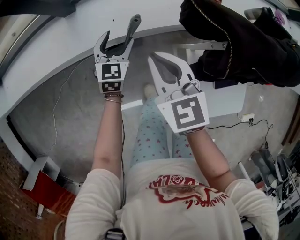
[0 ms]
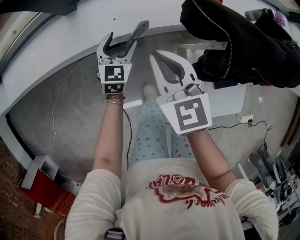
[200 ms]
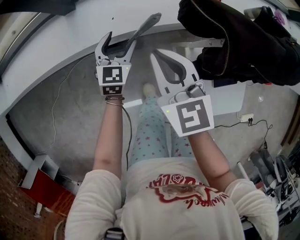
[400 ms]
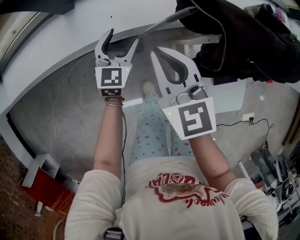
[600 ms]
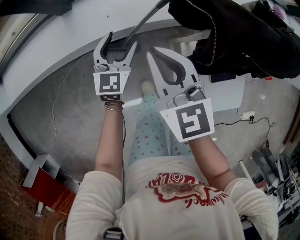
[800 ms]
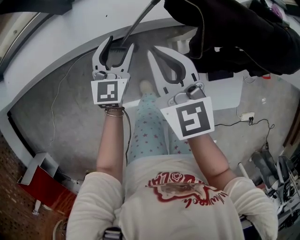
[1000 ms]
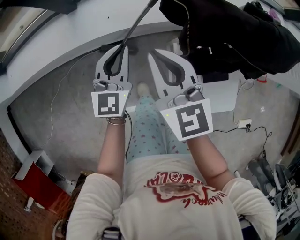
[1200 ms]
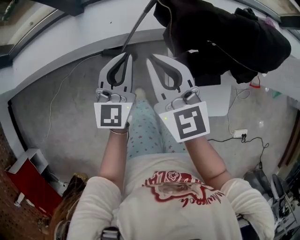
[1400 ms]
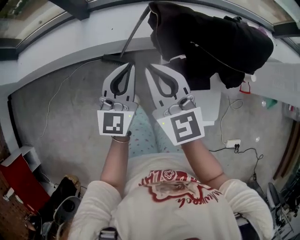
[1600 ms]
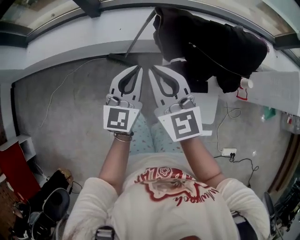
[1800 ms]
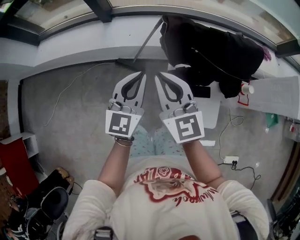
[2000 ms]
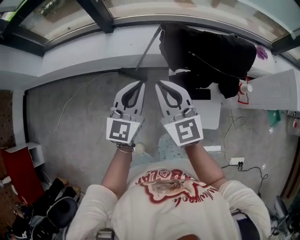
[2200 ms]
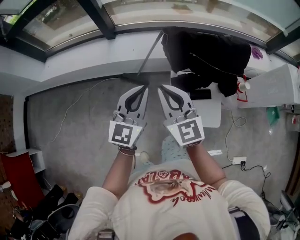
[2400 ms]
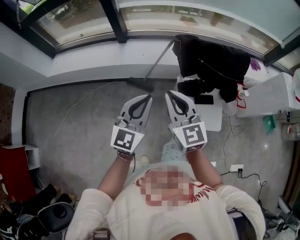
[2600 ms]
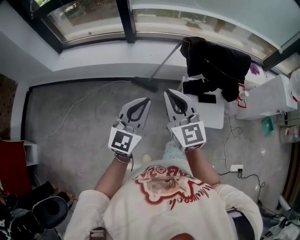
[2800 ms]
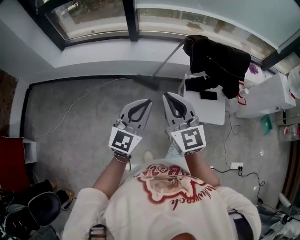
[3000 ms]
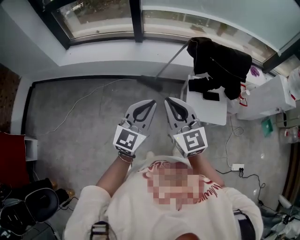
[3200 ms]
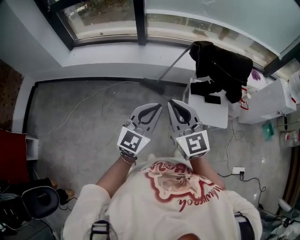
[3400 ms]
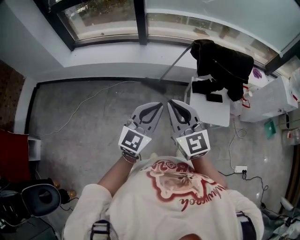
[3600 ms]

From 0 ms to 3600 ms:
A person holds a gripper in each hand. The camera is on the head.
From 0 ms to 1800 ms: The grippers both shift upward, backward and to the right by some 35 cm. The left gripper changes its angle by roughly 30 degrees, and closes its fingers; the right gripper changes its angle by approximately 30 degrees.
From 1800 ms to 3600 ms: The right gripper goes roughly 40 cm backward and to the left. Meanwhile the left gripper heads backward, to the left and upward, covering approximately 40 cm.

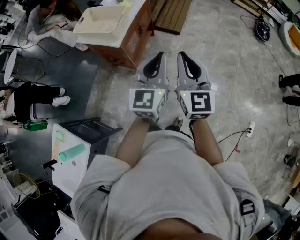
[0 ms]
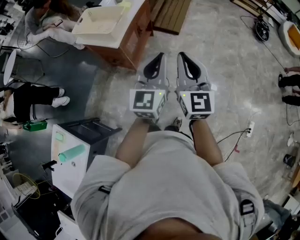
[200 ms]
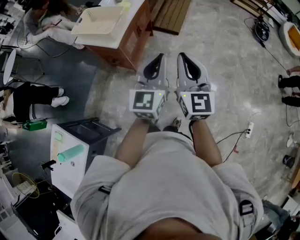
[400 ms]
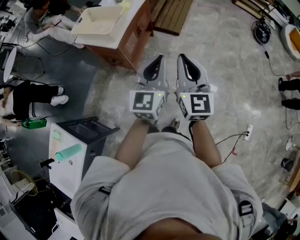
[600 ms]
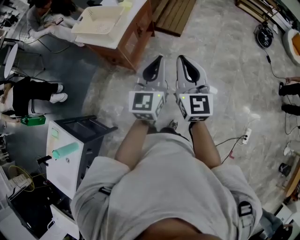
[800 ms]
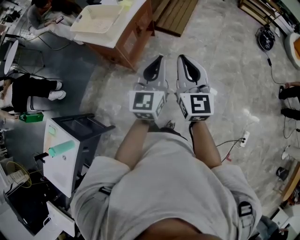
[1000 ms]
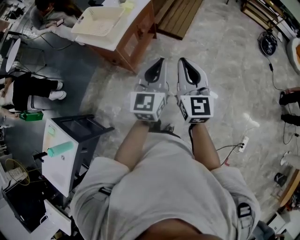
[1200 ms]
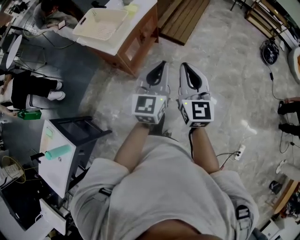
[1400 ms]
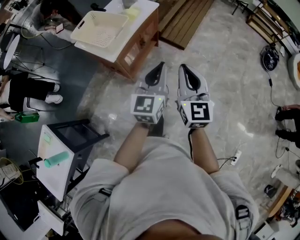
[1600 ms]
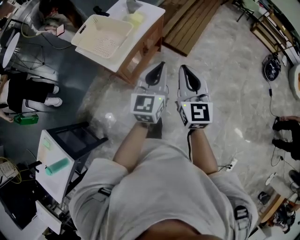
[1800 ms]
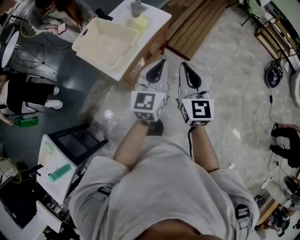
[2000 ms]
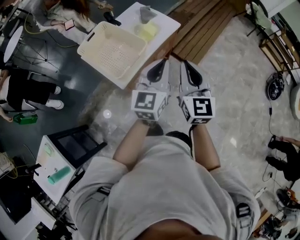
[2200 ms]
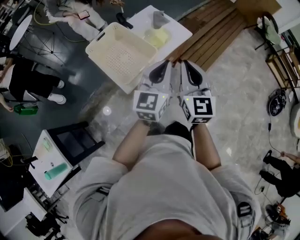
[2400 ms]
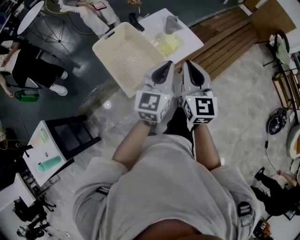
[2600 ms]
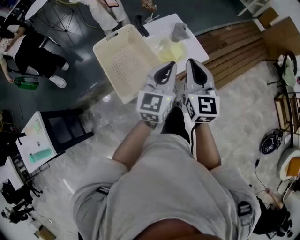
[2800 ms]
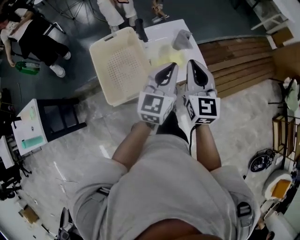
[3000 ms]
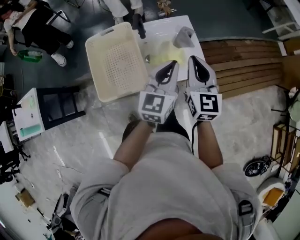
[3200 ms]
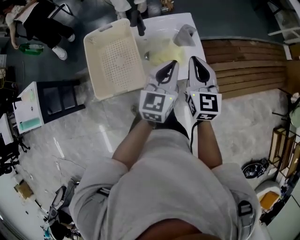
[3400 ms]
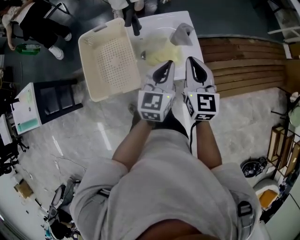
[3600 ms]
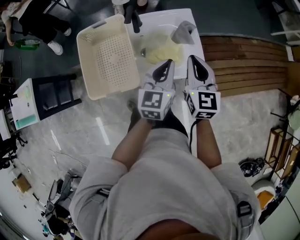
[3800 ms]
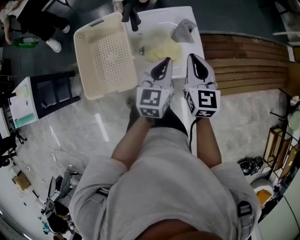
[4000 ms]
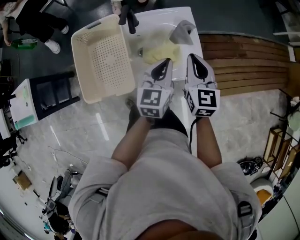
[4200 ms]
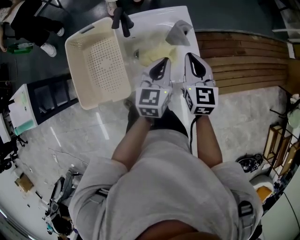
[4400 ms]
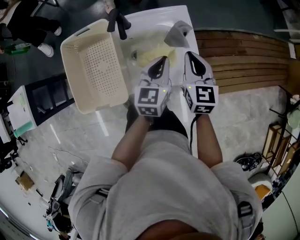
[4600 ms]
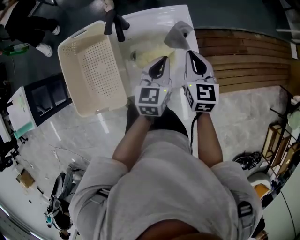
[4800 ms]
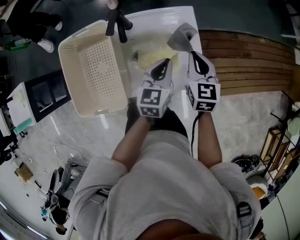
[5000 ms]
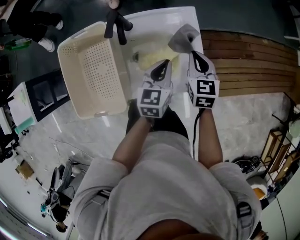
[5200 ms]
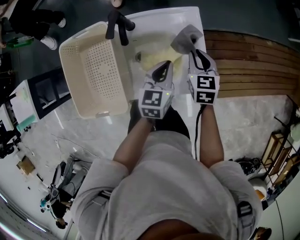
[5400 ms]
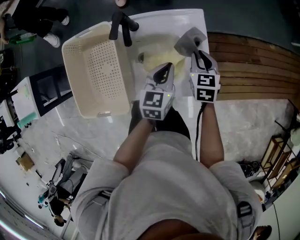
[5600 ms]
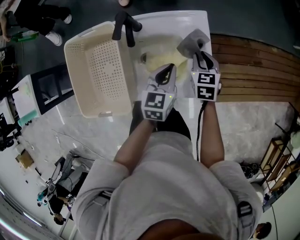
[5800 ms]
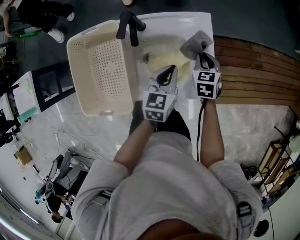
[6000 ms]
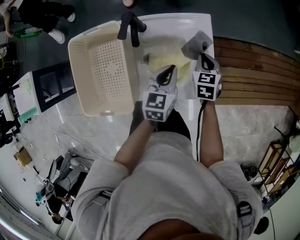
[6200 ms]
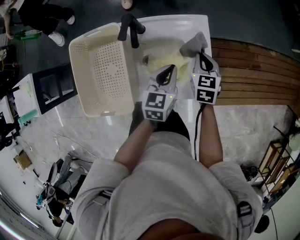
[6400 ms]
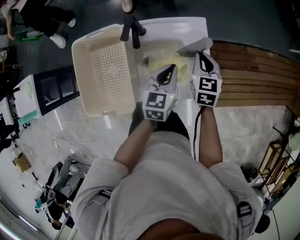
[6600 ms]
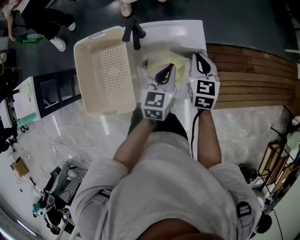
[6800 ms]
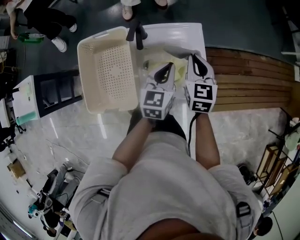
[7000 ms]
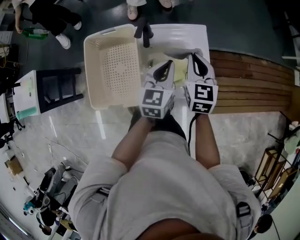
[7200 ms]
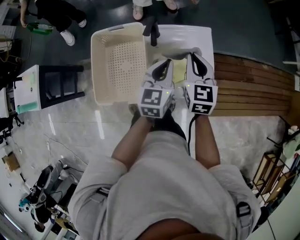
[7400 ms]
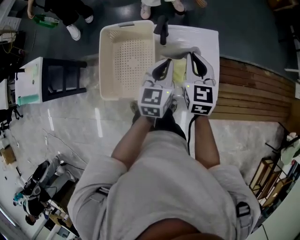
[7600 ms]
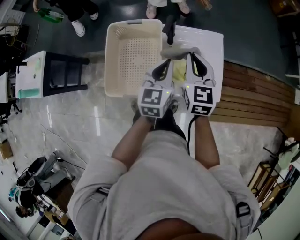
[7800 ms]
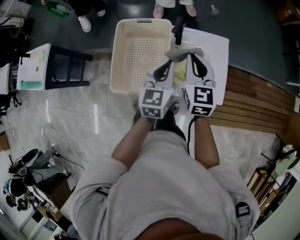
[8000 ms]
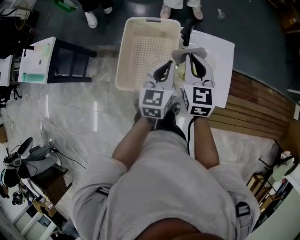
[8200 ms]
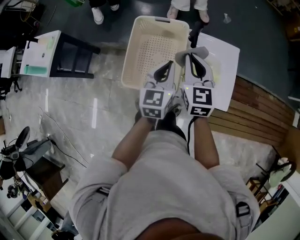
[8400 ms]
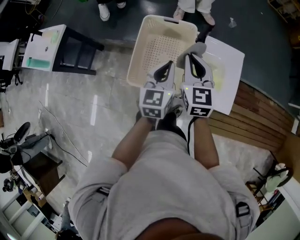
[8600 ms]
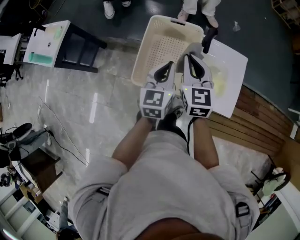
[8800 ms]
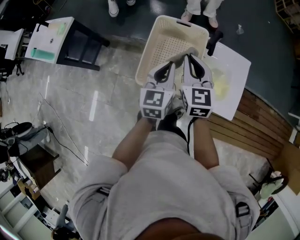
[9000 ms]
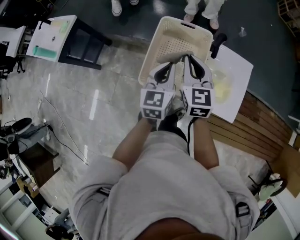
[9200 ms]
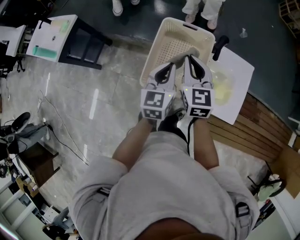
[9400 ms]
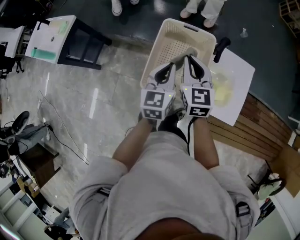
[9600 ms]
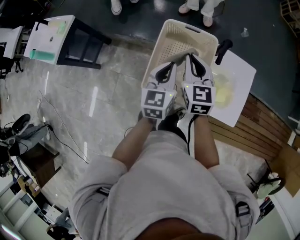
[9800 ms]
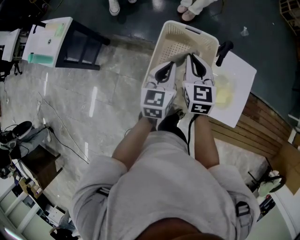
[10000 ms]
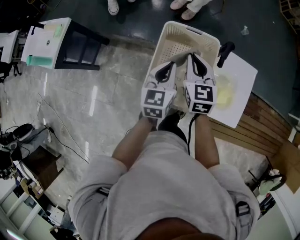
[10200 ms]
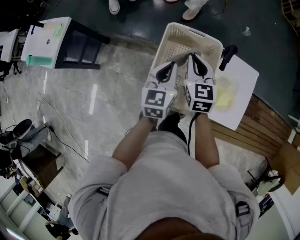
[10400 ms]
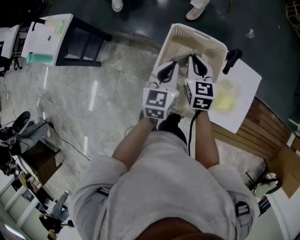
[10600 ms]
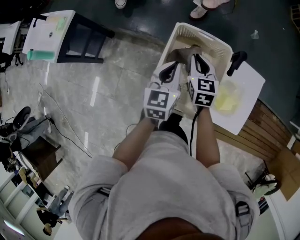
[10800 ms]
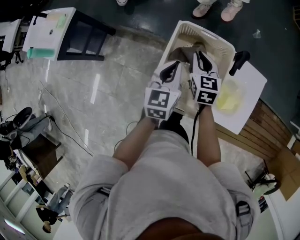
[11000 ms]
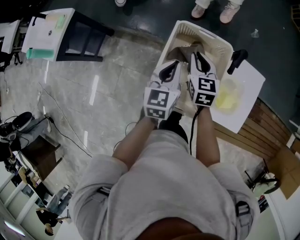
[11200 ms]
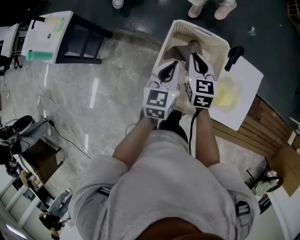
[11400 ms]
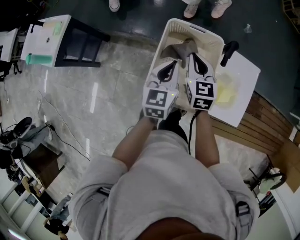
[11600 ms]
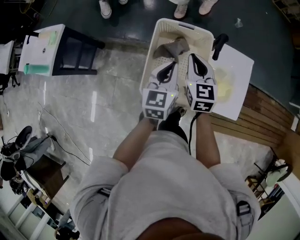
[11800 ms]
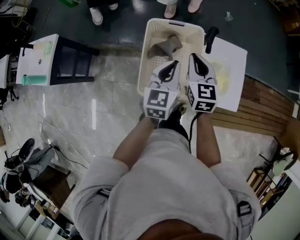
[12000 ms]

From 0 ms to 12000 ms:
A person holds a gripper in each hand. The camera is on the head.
From 0 ms to 1600 ms: The two grippers go approximately 15 cm forward.
From 1600 ms to 3000 ms: The pair of grippers is taken about 50 cm. The left gripper rotates some 30 degrees, while the right gripper changes its angle by some 40 degrees.
From 3000 ms to 4400 ms: Both grippers travel together downward, forward and to the right, roughly 20 cm. The left gripper swivels roughly 20 degrees.
From 4400 ms to 6000 ms: The right gripper heads downward and forward, covering some 20 cm, and changes its angle by about 30 degrees; the left gripper heads downward, covering approximately 10 cm.
From 6000 ms to 7600 ms: The left gripper moves upward and to the left, approximately 15 cm. Meanwhile the right gripper shifts roughly 25 cm upward and to the left, and swivels about 30 degrees.
From 7600 ms to 9000 ms: The grippers both shift to the left by roughly 20 cm. The right gripper swivels approximately 20 degrees.
From 9000 ms to 10400 ms: The left gripper is displaced forward by roughly 5 cm. The right gripper moves forward and downward, some 10 cm.
From 10400 ms to 12000 ms: The right gripper heads to the right and backward, covering roughly 10 cm, and moves approximately 5 cm downward and comes back. The left gripper is displaced to the right by approximately 5 cm.

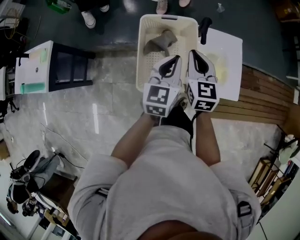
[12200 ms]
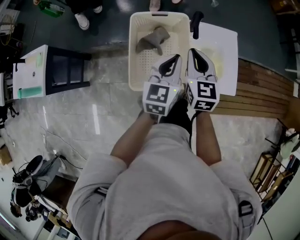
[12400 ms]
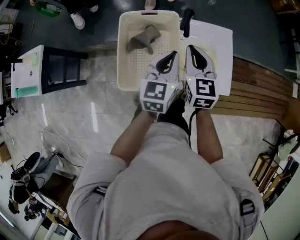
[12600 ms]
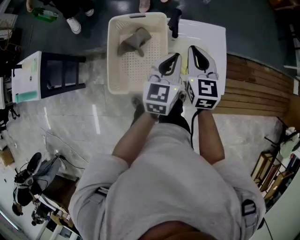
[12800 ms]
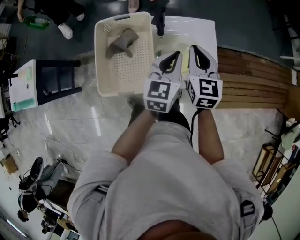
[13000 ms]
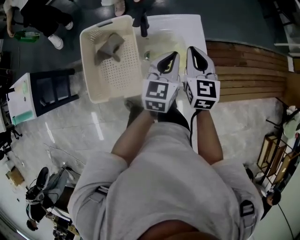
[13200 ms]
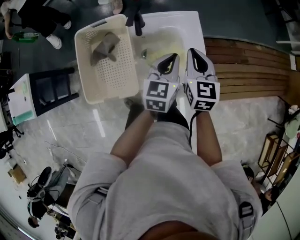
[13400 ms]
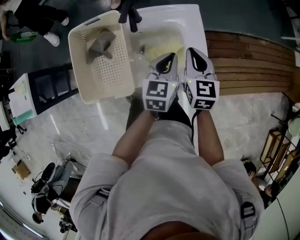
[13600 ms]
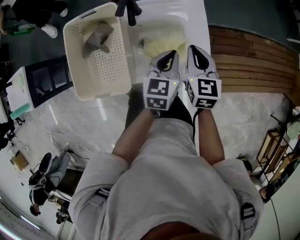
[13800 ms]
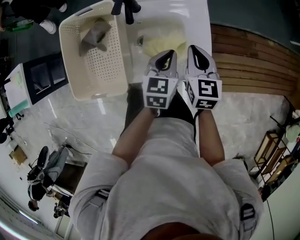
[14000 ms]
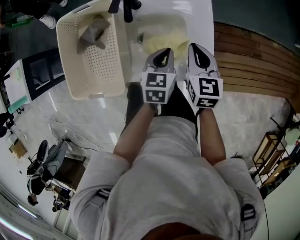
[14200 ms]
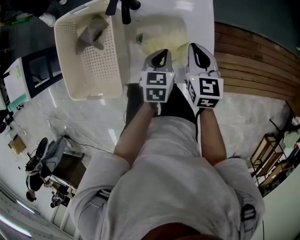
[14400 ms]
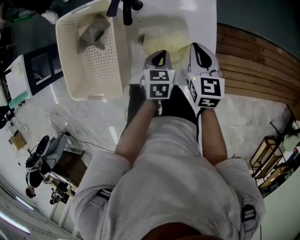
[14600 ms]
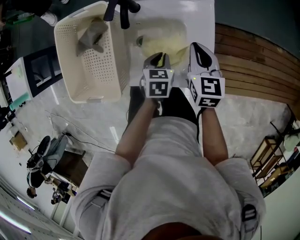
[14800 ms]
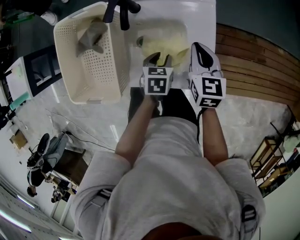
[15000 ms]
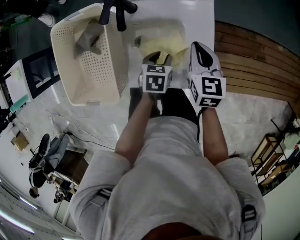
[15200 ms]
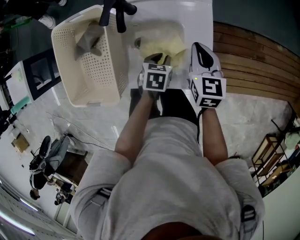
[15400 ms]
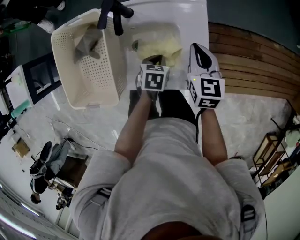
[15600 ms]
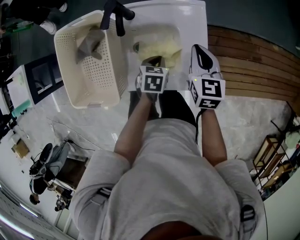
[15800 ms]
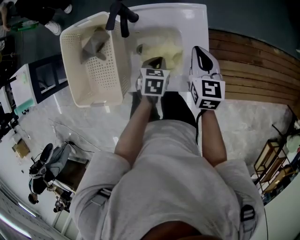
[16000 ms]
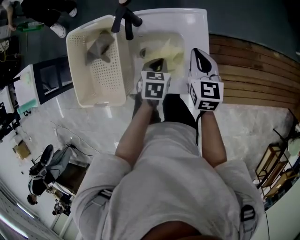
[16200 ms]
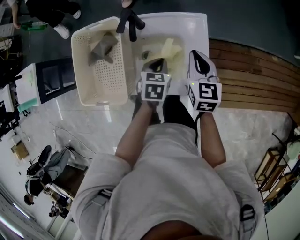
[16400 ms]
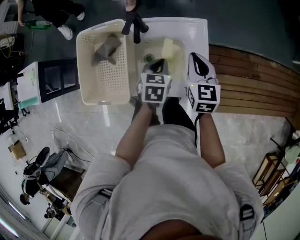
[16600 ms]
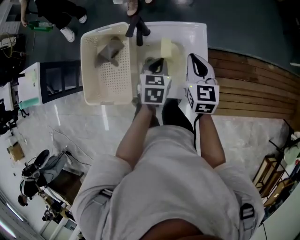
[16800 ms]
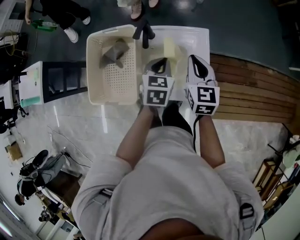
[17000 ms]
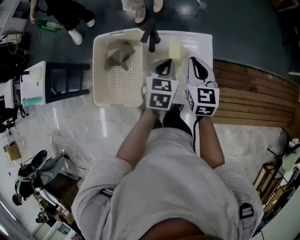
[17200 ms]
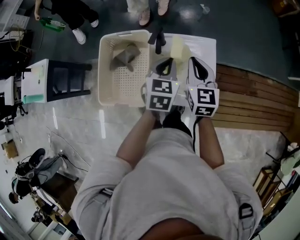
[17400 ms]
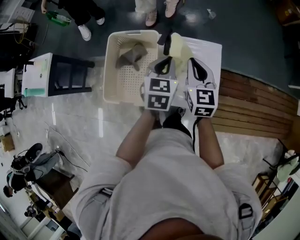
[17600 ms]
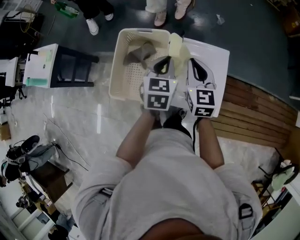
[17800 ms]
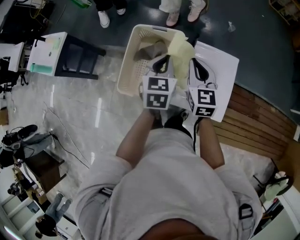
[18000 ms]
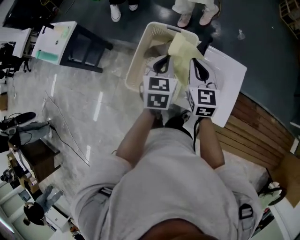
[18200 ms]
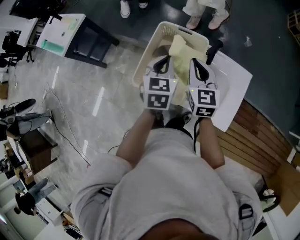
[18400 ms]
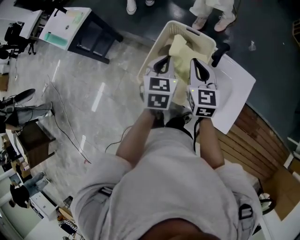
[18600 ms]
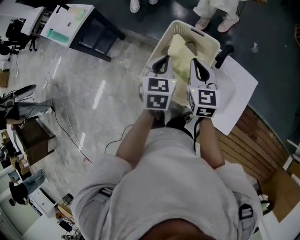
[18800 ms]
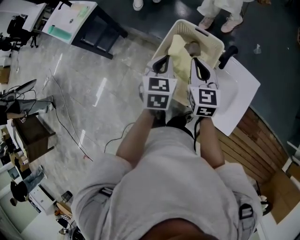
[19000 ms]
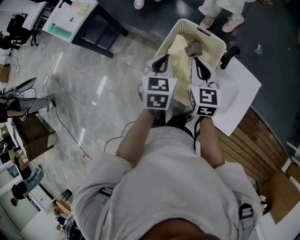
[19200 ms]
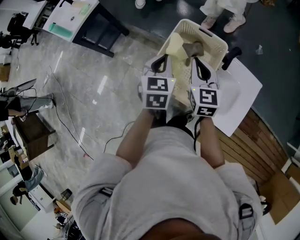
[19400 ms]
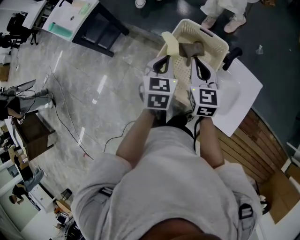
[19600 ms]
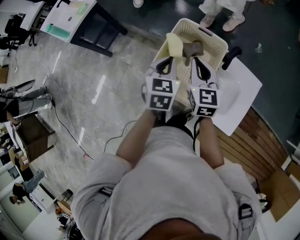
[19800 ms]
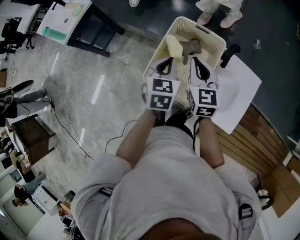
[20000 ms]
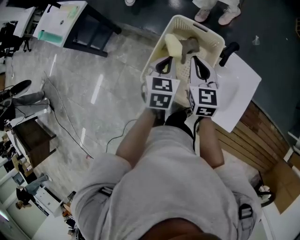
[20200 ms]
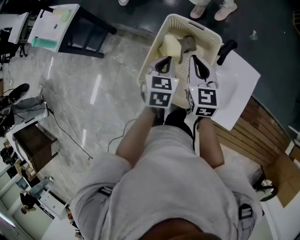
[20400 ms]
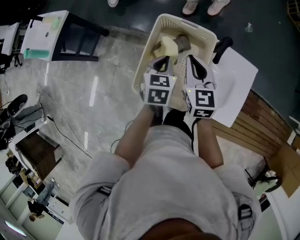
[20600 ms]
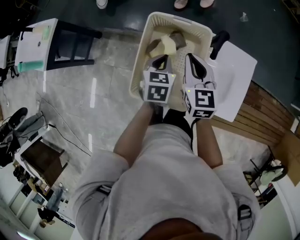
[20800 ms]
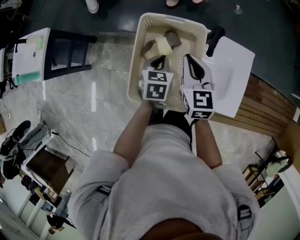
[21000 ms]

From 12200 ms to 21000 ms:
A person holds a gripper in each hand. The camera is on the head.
From 12200 ms to 13600 ms: Both grippers move to the right, roughly 25 cm.
From 13600 ms to 15200 ms: The left gripper travels downward by roughly 20 cm, points its fingers about 30 degrees further downward, and opens. Meanwhile the right gripper travels downward and forward by roughly 10 cm.
From 15200 ms to 16600 ms: The two grippers go about 10 cm upward. The left gripper closes.
From 16600 ms to 18000 ms: The two grippers go about 25 cm to the left and upward. The left gripper rotates roughly 20 degrees.
From 18000 ms to 19600 ms: The two grippers go approximately 15 cm to the left.
From 19600 ms to 21000 ms: The left gripper goes roughly 15 cm downward and to the right, and turns by roughly 30 degrees, while the right gripper goes some 5 cm to the right.
